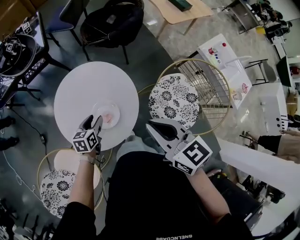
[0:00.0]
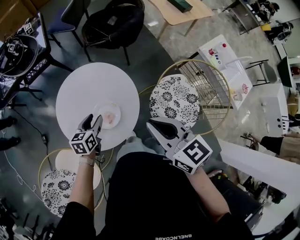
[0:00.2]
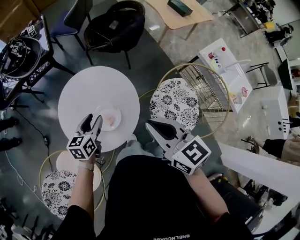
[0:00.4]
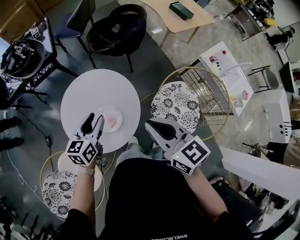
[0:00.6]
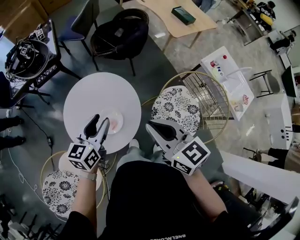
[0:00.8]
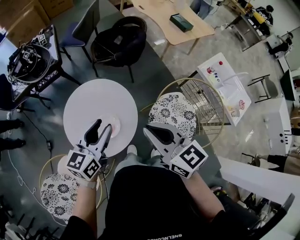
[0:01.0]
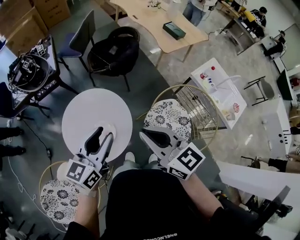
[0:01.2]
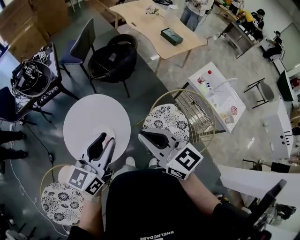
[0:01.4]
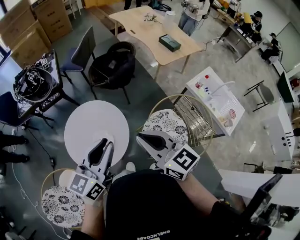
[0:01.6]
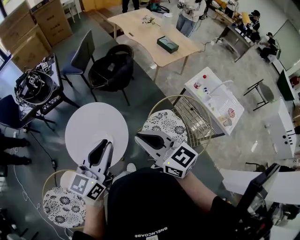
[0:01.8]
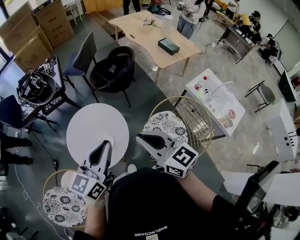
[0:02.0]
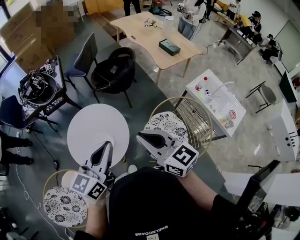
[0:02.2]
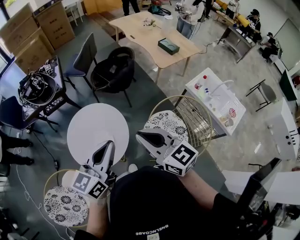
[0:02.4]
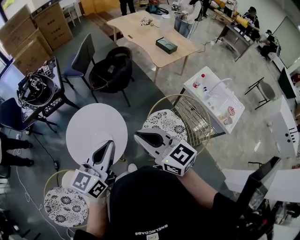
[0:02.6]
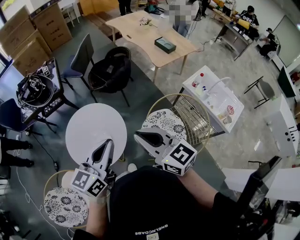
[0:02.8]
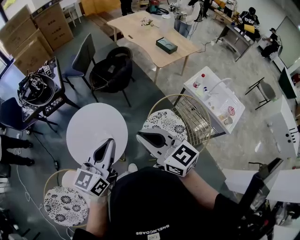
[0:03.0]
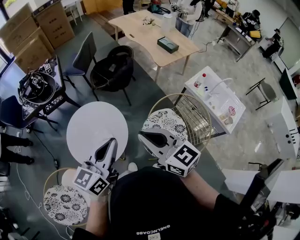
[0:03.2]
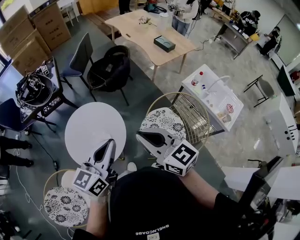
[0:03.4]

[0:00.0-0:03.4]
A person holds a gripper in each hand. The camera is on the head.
0:00.0 to 0:01.6: The left gripper travels upward by some 40 cm, points its fingers approximately 40 degrees further upward, and closes its fingers; the right gripper goes about 15 cm upward and to the right.
0:01.6 to 0:03.4: The left gripper shifts by some 5 cm, and closes.

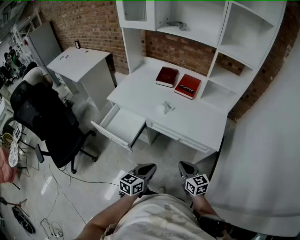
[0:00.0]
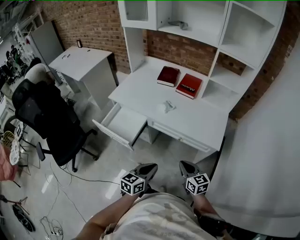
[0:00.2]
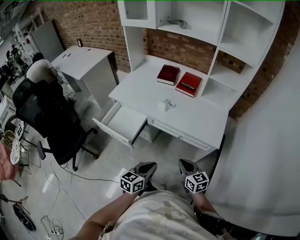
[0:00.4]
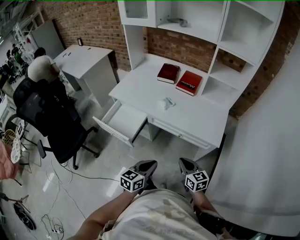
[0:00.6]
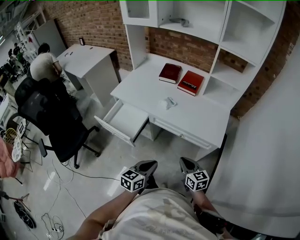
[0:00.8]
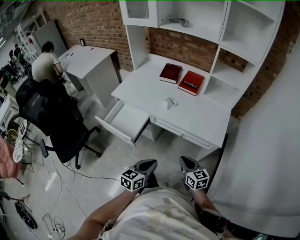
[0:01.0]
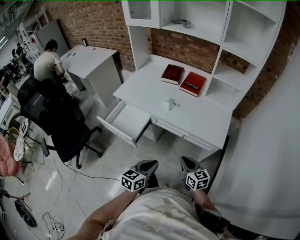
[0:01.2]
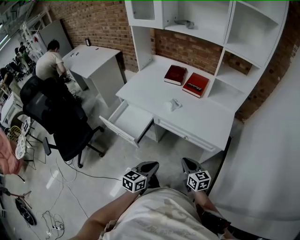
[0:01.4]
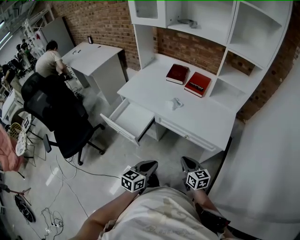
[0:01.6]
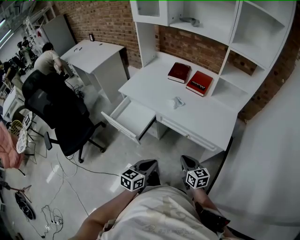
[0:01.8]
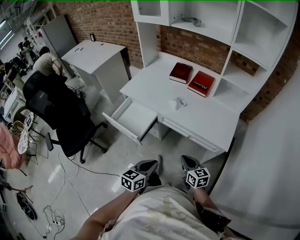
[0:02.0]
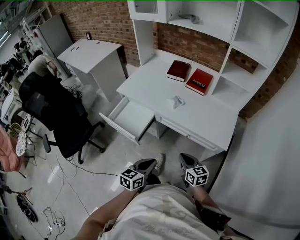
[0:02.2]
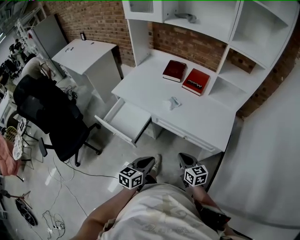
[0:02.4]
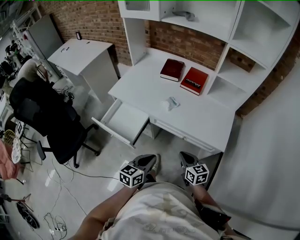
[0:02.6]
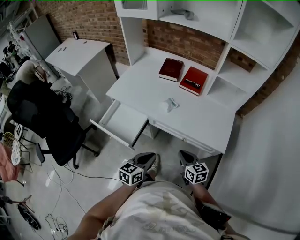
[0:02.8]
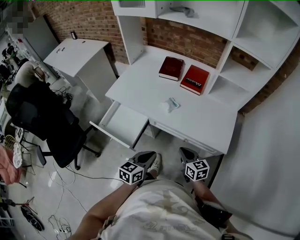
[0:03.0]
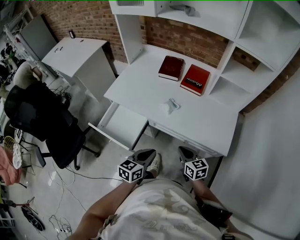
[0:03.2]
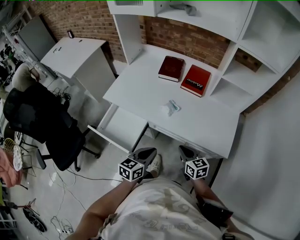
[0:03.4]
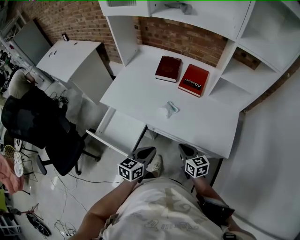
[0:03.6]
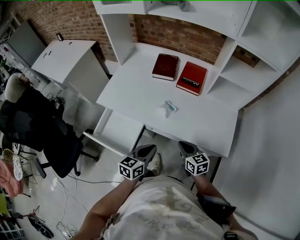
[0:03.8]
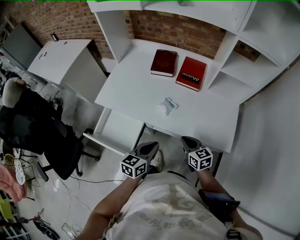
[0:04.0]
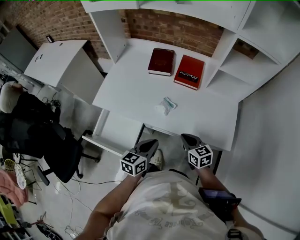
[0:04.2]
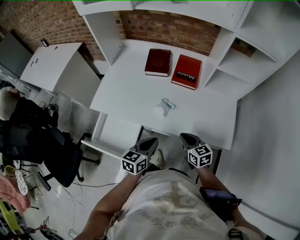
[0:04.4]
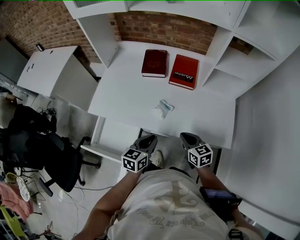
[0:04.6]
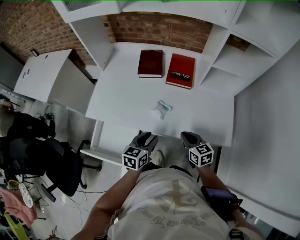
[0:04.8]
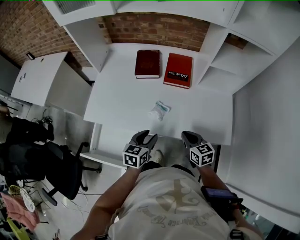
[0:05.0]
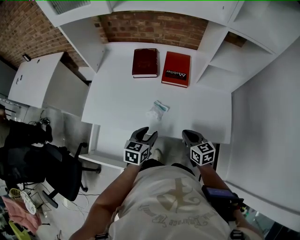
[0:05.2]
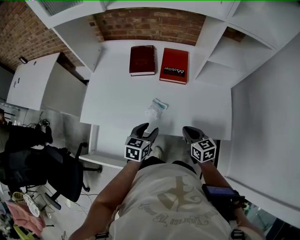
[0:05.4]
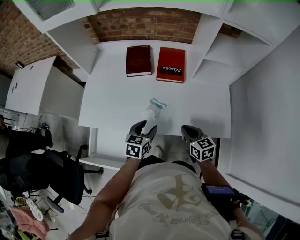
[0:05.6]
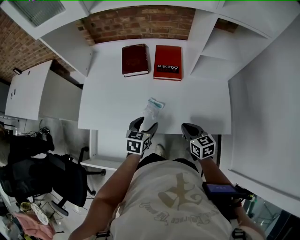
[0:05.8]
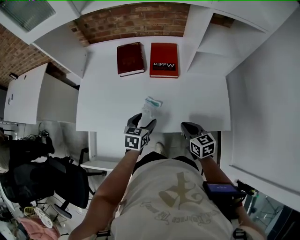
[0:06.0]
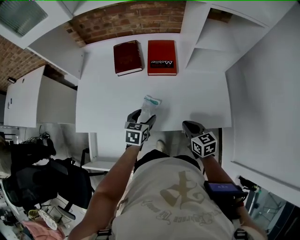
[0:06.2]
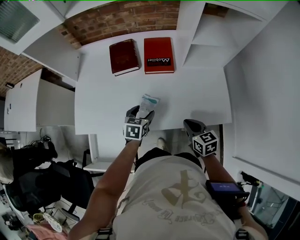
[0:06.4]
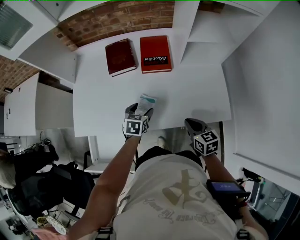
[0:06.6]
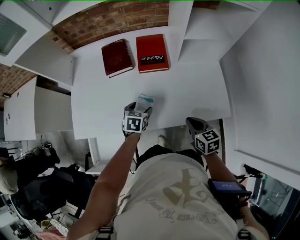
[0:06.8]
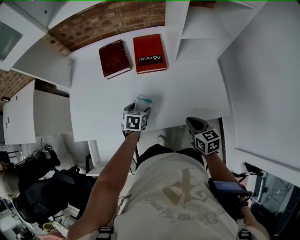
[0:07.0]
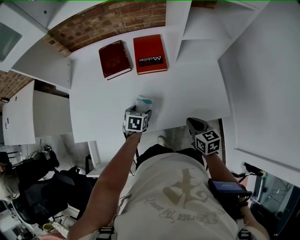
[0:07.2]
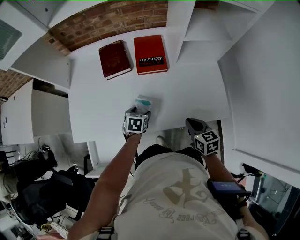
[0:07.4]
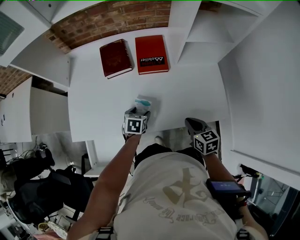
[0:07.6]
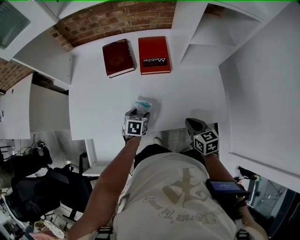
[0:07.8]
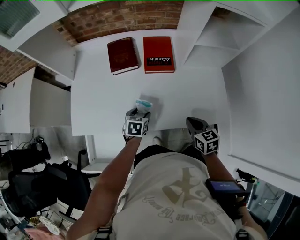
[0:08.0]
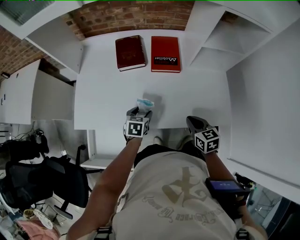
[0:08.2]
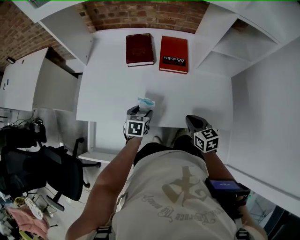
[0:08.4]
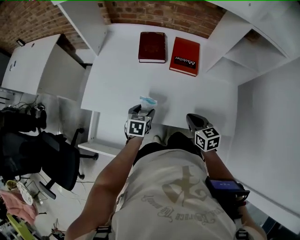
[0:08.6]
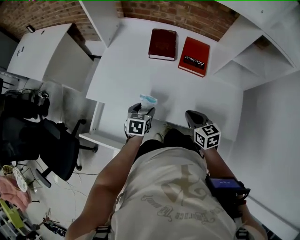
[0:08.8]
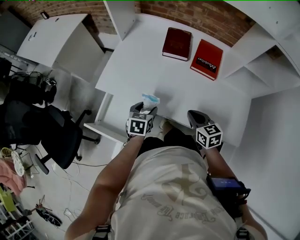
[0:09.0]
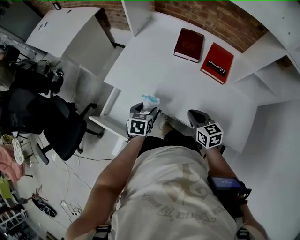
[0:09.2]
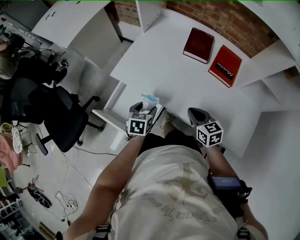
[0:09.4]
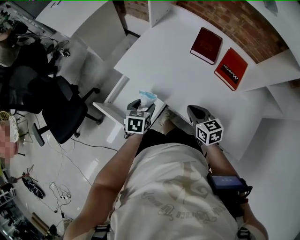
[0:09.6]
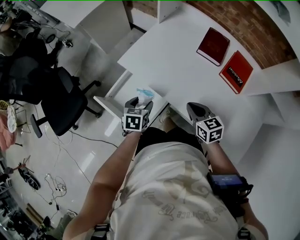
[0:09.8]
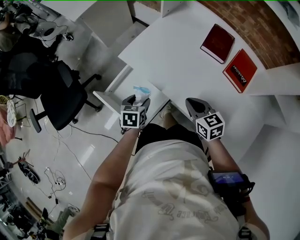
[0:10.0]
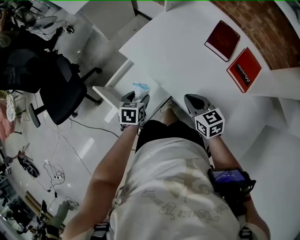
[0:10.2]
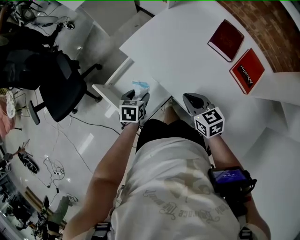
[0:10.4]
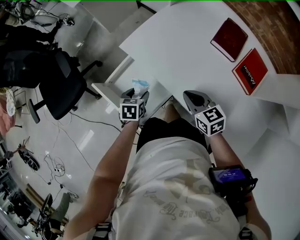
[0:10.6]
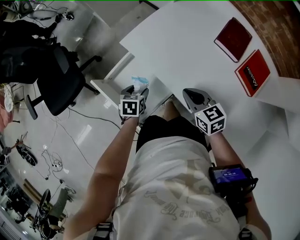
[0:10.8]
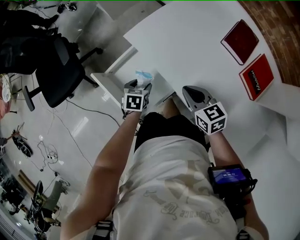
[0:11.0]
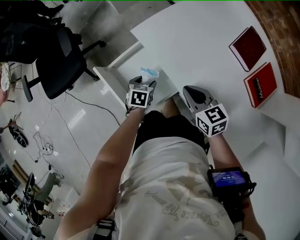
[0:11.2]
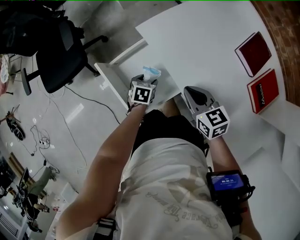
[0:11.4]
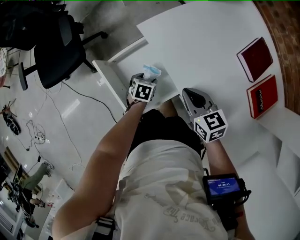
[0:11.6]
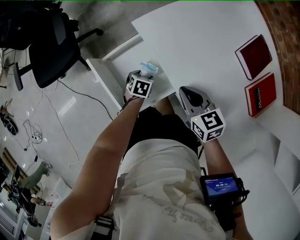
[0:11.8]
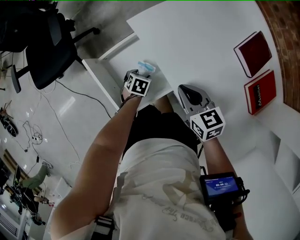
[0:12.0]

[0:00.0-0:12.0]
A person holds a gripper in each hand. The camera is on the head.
0:00.0 to 0:01.6: The grippers make only small movements.
0:01.6 to 0:03.0: The grippers both shift forward by about 15 cm.
0:03.0 to 0:04.4: The grippers both shift forward by roughly 15 cm.
0:04.4 to 0:06.0: The left gripper travels forward and downward by about 15 cm, rotates about 20 degrees, and opens up. Meanwhile the right gripper changes place by some 5 cm.
0:06.0 to 0:07.6: The left gripper is displaced downward and forward by about 10 cm.
0:07.6 to 0:09.0: The left gripper moves approximately 20 cm, and turns by roughly 30 degrees. Meanwhile the right gripper changes place by roughly 15 cm, and turns by some 30 degrees.
0:09.0 to 0:10.4: The left gripper ends up about 20 cm from where it was, and swivels approximately 30 degrees, while the right gripper ends up approximately 15 cm from where it was, and turns by approximately 30 degrees.
0:10.4 to 0:12.0: The right gripper travels forward by approximately 5 cm, while the left gripper heads downward, covering some 20 cm.

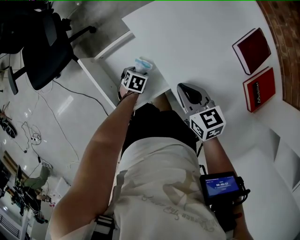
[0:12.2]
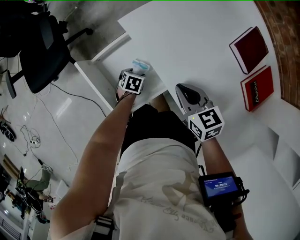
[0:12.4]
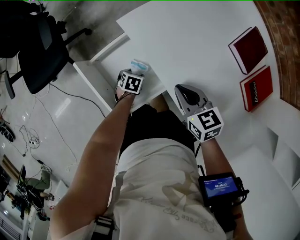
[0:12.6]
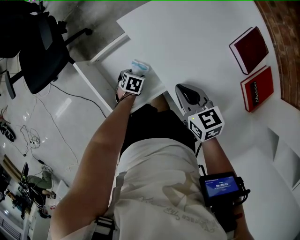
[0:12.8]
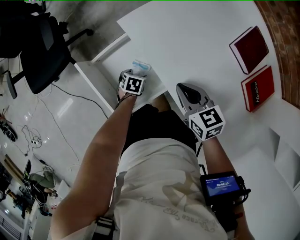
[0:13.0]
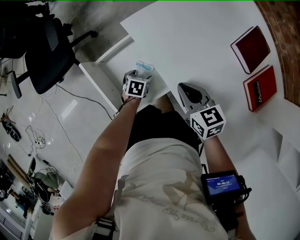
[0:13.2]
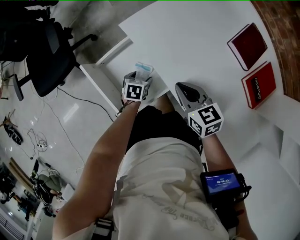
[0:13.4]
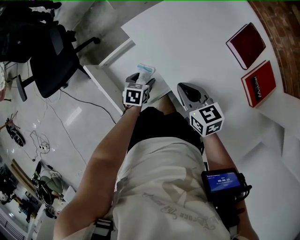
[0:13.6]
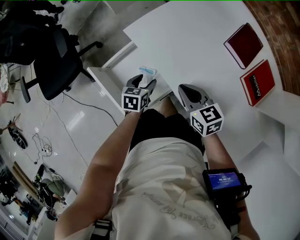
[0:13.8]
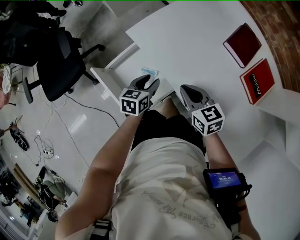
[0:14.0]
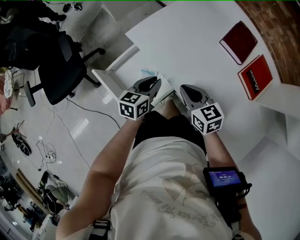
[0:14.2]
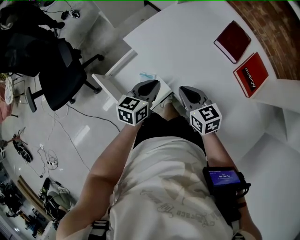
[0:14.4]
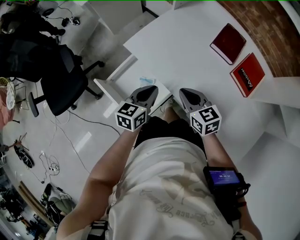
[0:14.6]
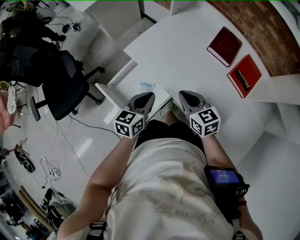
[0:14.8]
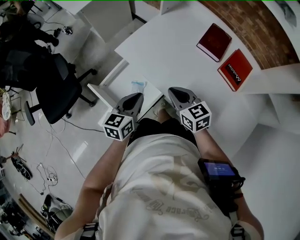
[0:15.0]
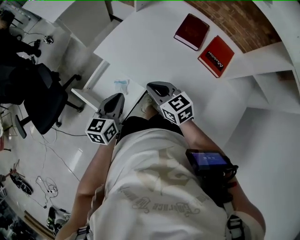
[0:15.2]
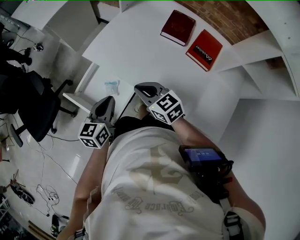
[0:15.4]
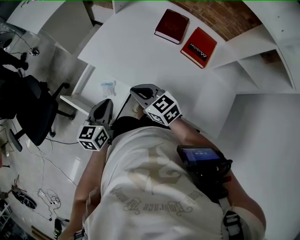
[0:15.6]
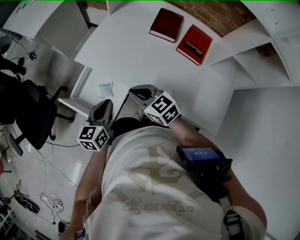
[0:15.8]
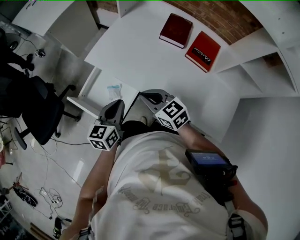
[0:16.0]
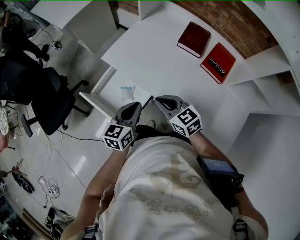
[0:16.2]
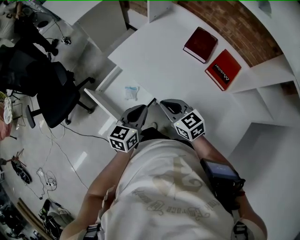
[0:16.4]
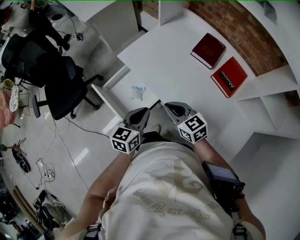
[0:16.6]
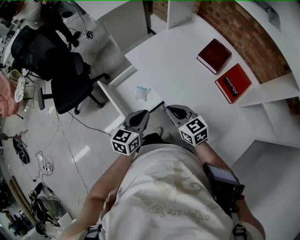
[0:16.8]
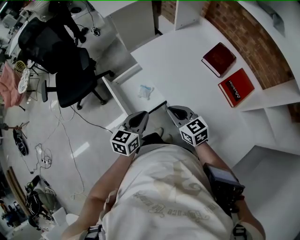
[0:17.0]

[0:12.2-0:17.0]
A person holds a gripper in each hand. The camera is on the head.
0:12.2 to 0:13.8: The left gripper moves upward, about 15 cm, and swivels about 20 degrees.
0:13.8 to 0:15.4: The left gripper goes roughly 20 cm upward and backward, changes its angle by roughly 30 degrees, and closes its fingers. Meanwhile the right gripper heads upward and backward, covering some 10 cm.
0:15.4 to 0:17.0: The two grippers go approximately 10 cm backward.

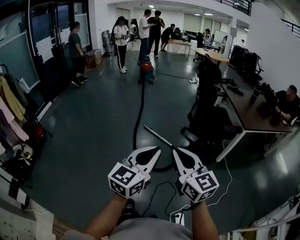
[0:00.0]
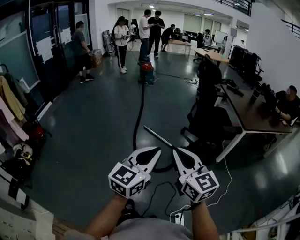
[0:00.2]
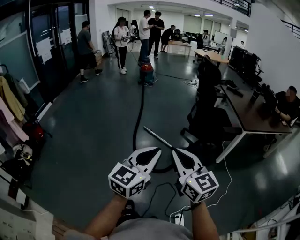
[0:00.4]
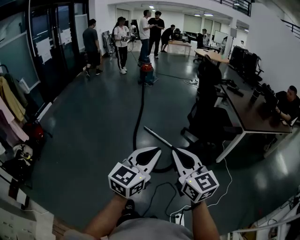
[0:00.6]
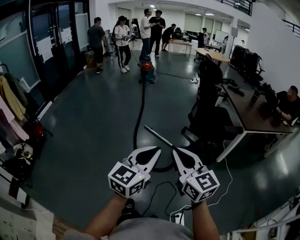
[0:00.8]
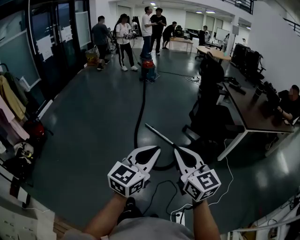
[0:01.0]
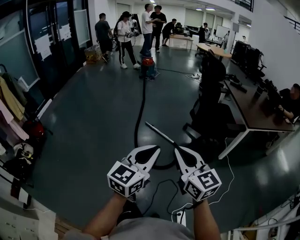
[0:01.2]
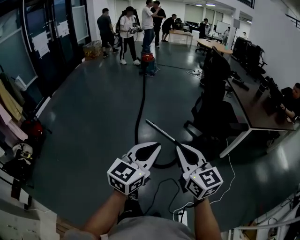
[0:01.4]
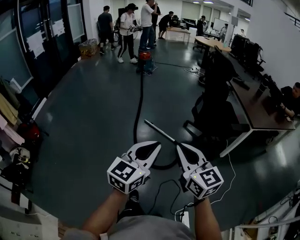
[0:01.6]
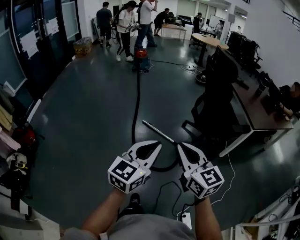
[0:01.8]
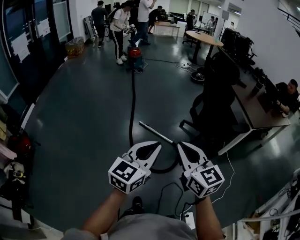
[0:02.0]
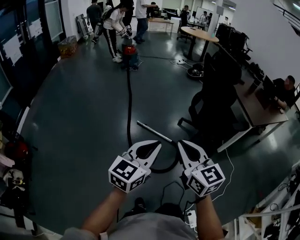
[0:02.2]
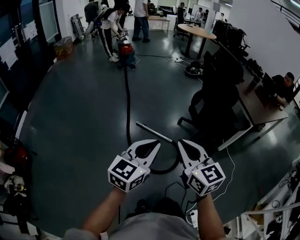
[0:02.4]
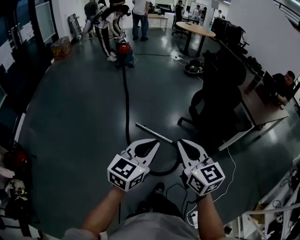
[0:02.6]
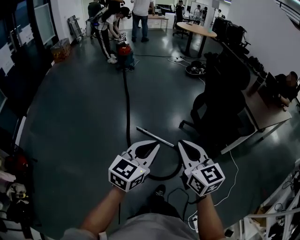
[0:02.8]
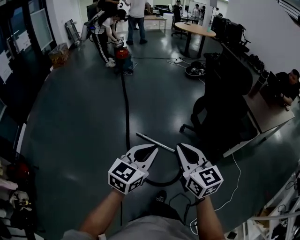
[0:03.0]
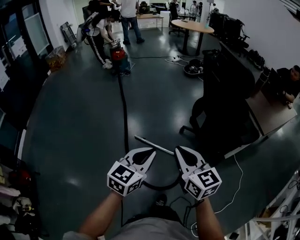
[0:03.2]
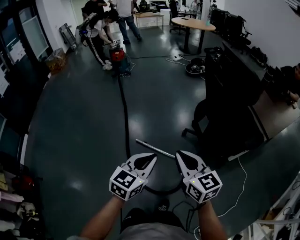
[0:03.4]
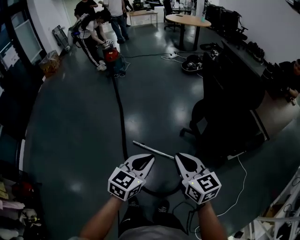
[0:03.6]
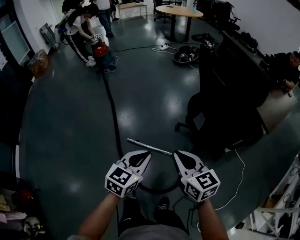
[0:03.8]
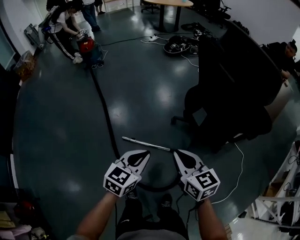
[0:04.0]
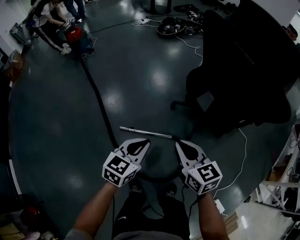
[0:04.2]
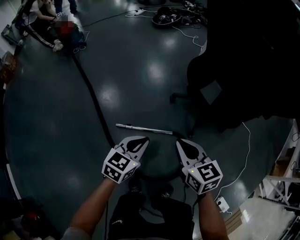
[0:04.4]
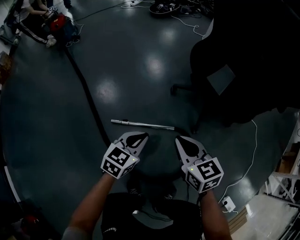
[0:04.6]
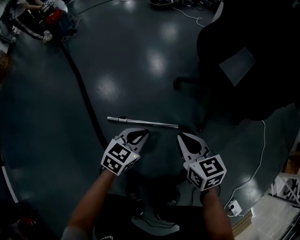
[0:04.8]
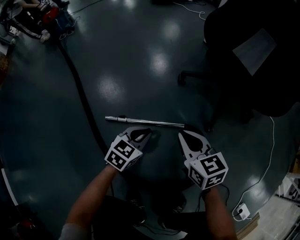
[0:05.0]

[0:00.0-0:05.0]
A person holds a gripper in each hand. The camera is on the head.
0:00.0 to 0:01.6: The left gripper travels forward and to the left by some 15 cm. The right gripper heads forward, covering approximately 10 cm.
0:01.6 to 0:03.4: The two grippers travel together, forward, some 50 cm. The left gripper turns by roughly 20 degrees.
0:03.4 to 0:05.0: Both grippers travel together downward, roughly 60 cm. The right gripper changes its angle by roughly 30 degrees; the left gripper turns by approximately 30 degrees.
